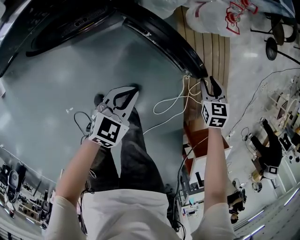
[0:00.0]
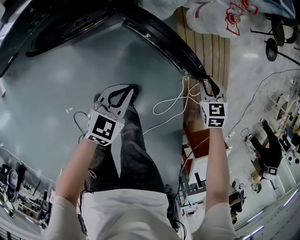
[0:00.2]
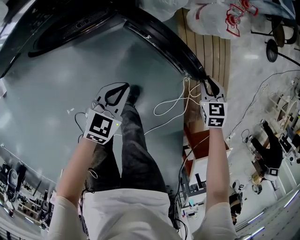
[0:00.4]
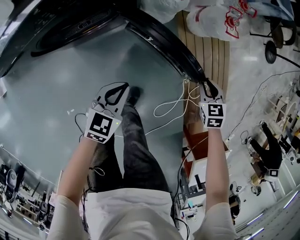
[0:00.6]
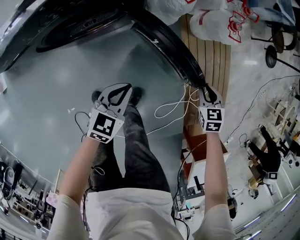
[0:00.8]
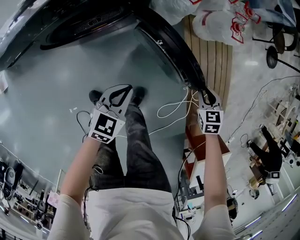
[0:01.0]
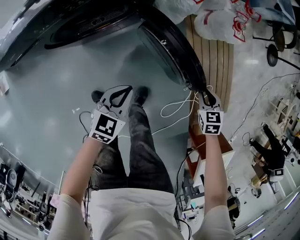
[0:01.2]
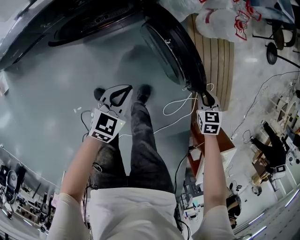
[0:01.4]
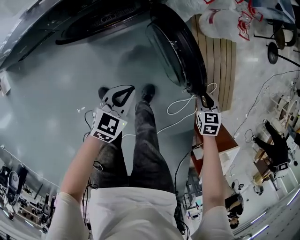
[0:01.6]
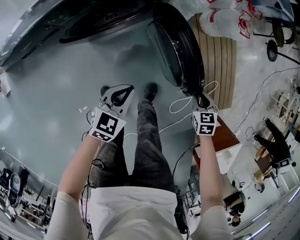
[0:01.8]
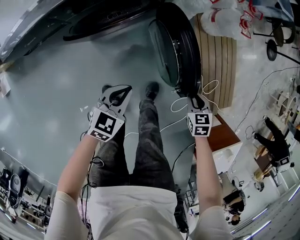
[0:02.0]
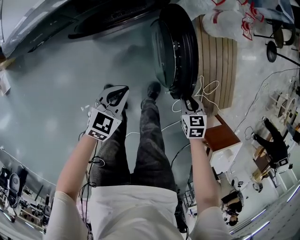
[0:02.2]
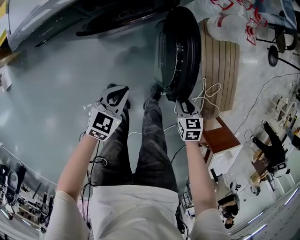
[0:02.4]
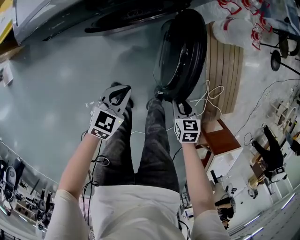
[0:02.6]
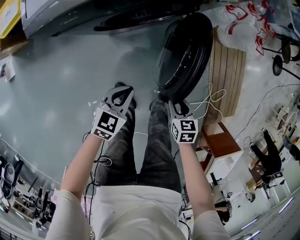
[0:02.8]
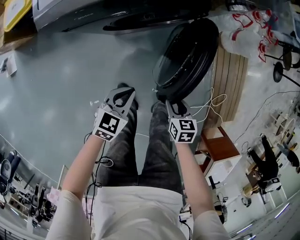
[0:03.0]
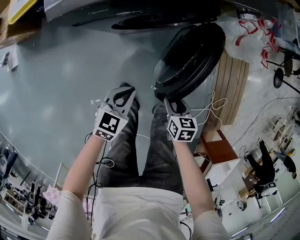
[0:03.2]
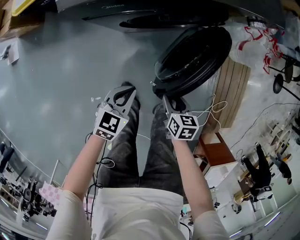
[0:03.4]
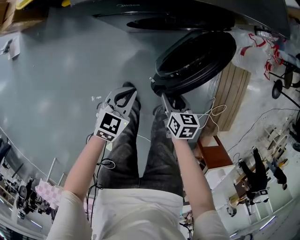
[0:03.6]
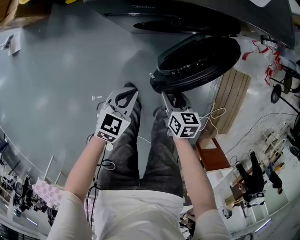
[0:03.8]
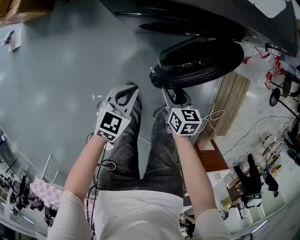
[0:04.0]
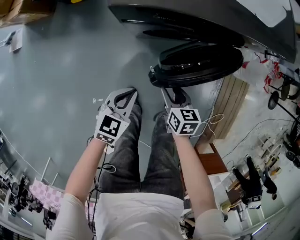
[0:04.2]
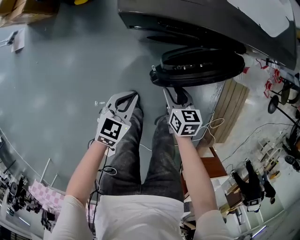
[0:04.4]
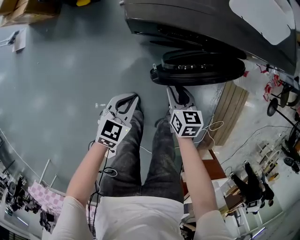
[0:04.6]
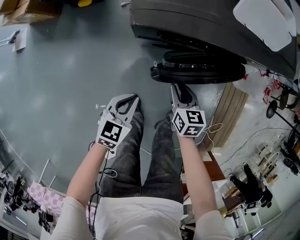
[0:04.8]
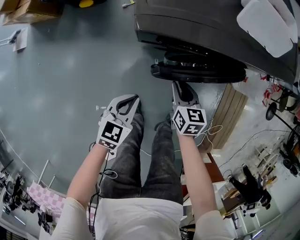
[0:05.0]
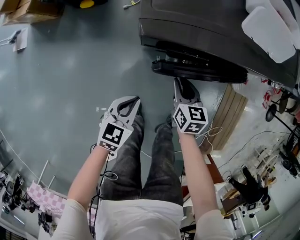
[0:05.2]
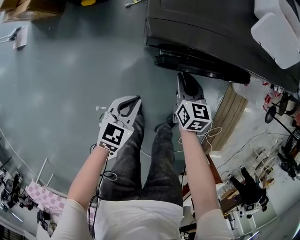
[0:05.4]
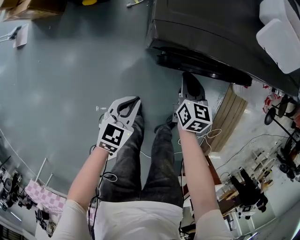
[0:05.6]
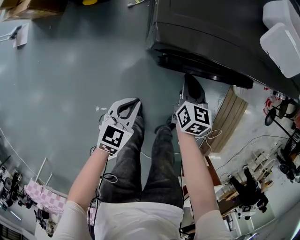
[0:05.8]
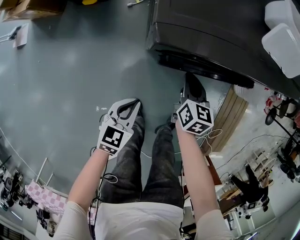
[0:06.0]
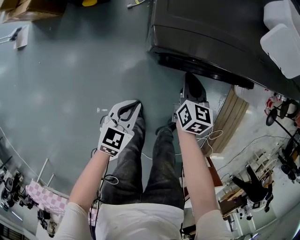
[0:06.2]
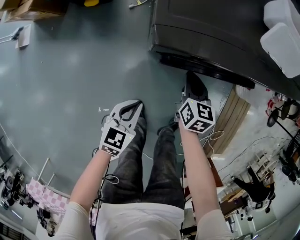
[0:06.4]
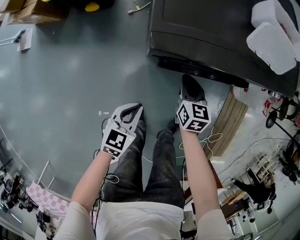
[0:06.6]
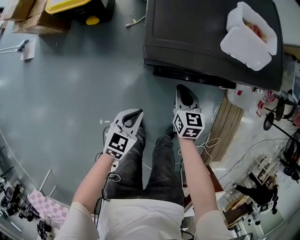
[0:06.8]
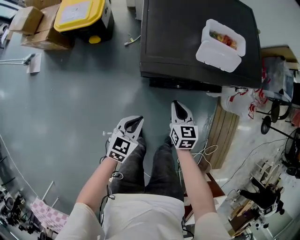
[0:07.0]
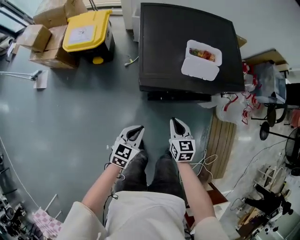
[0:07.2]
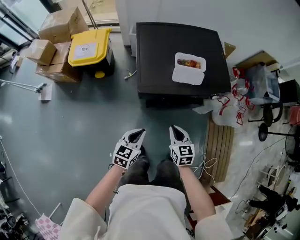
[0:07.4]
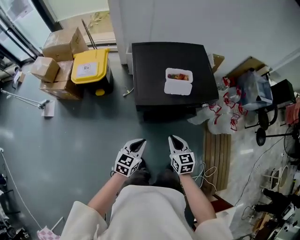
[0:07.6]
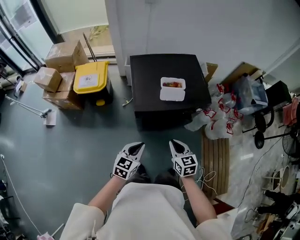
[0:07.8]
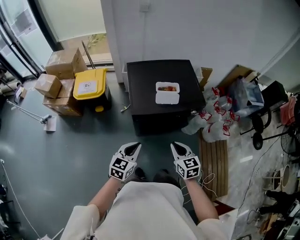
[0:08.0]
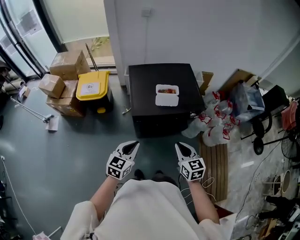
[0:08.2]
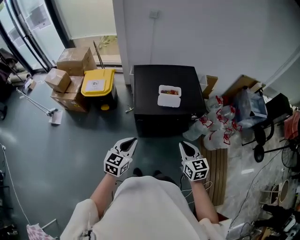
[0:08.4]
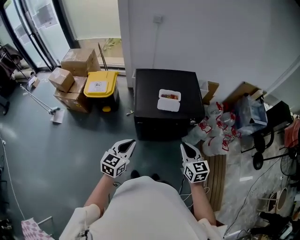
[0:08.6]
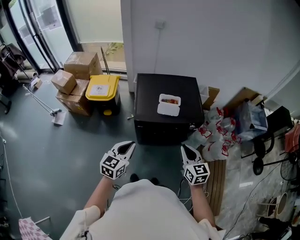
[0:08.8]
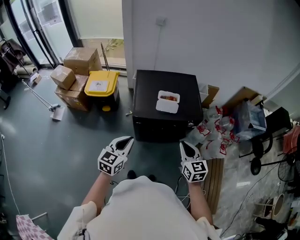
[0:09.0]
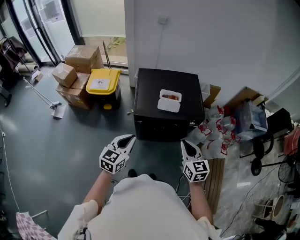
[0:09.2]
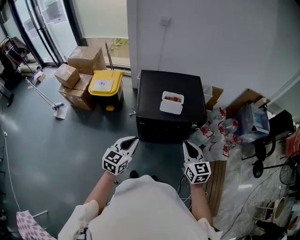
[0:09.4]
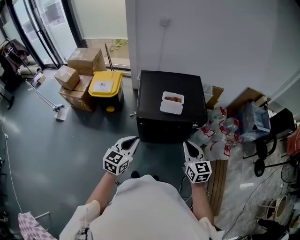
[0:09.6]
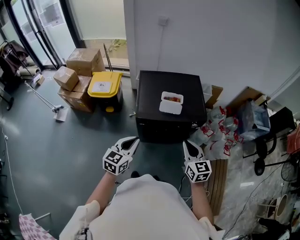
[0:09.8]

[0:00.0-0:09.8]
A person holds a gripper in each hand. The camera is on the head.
0:00.0 to 0:01.4: The left gripper moves to the left and backward, roughly 15 cm. Meanwhile the right gripper heads backward and to the left, covering roughly 15 cm.
0:01.4 to 0:02.8: The left gripper heads to the left and backward, covering some 20 cm. Meanwhile the right gripper shifts about 30 cm to the left and backward.
0:02.8 to 0:04.2: The left gripper travels to the left by roughly 15 cm. Meanwhile the right gripper travels to the left and forward by approximately 25 cm.
0:04.2 to 0:05.6: The left gripper is displaced to the left by some 5 cm. The right gripper heads forward, covering some 15 cm, and closes its fingers.
0:05.6 to 0:07.0: The grippers both shift upward by some 15 cm.
0:07.0 to 0:08.4: The grippers both shift upward by some 40 cm.
0:08.4 to 0:09.8: The right gripper travels upward by about 5 cm.

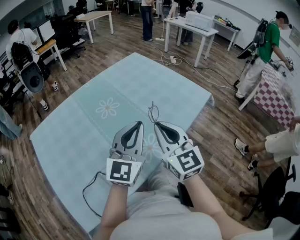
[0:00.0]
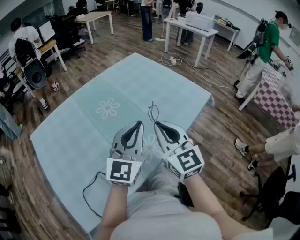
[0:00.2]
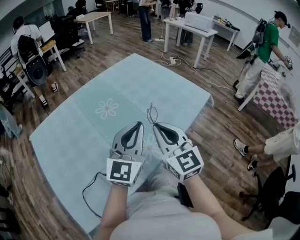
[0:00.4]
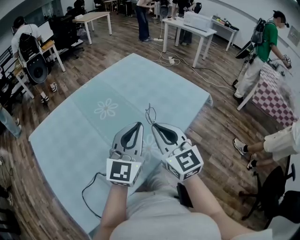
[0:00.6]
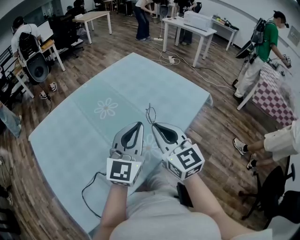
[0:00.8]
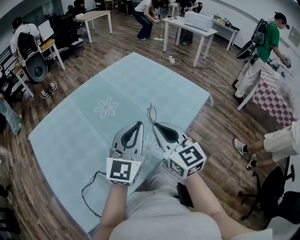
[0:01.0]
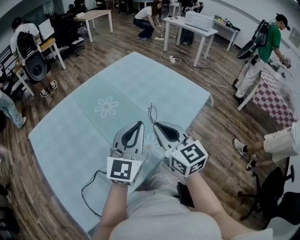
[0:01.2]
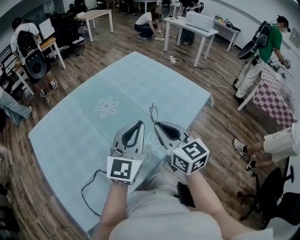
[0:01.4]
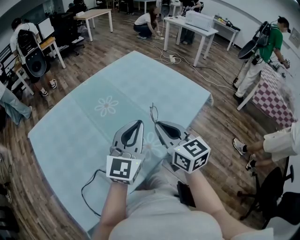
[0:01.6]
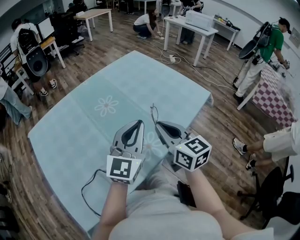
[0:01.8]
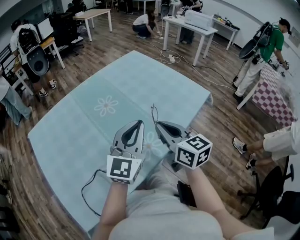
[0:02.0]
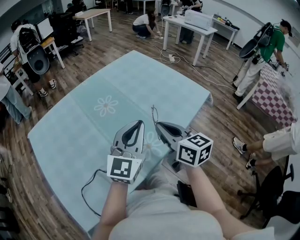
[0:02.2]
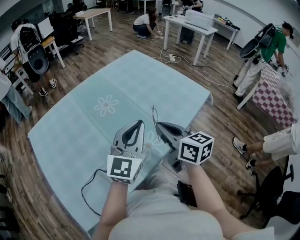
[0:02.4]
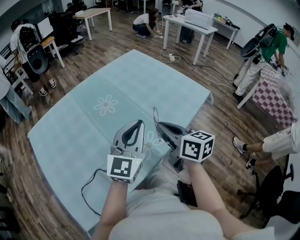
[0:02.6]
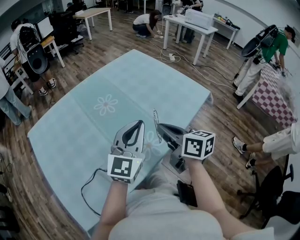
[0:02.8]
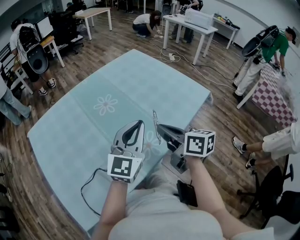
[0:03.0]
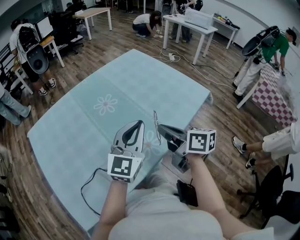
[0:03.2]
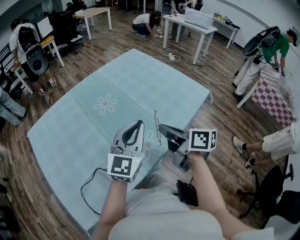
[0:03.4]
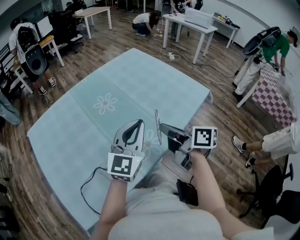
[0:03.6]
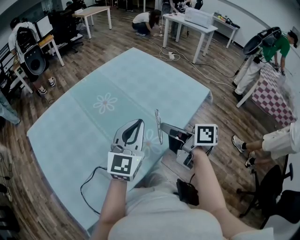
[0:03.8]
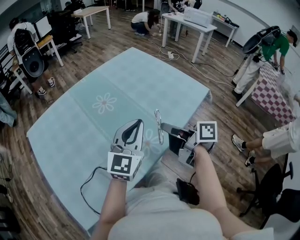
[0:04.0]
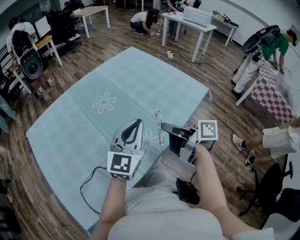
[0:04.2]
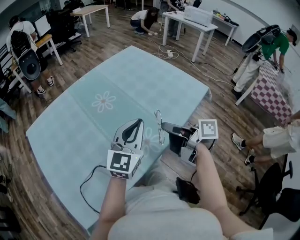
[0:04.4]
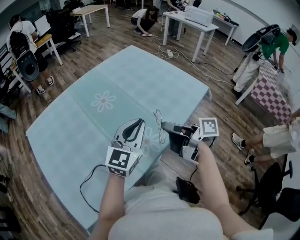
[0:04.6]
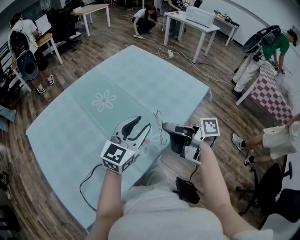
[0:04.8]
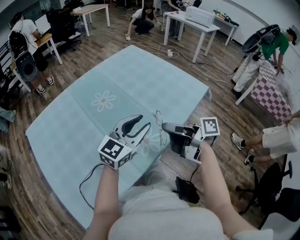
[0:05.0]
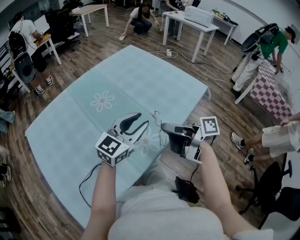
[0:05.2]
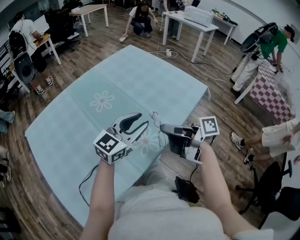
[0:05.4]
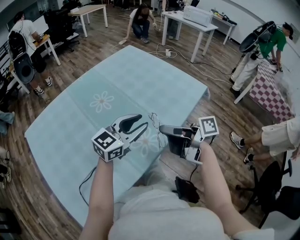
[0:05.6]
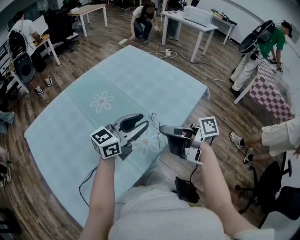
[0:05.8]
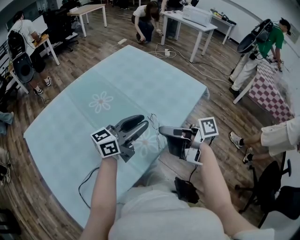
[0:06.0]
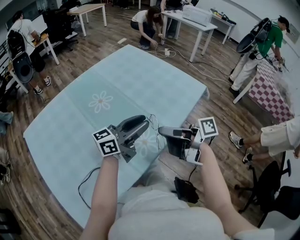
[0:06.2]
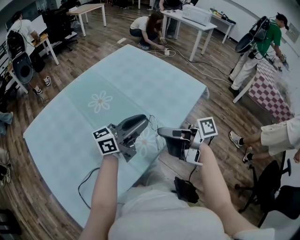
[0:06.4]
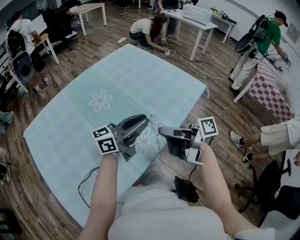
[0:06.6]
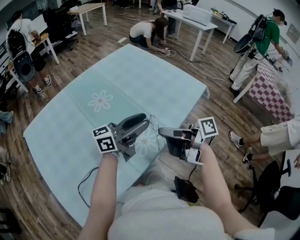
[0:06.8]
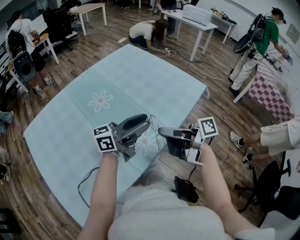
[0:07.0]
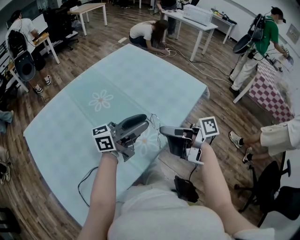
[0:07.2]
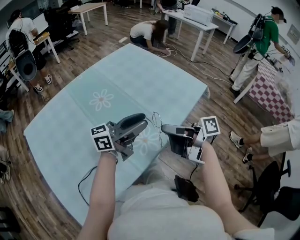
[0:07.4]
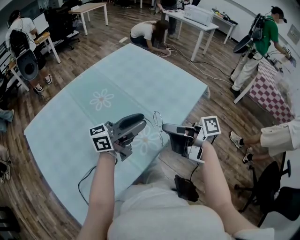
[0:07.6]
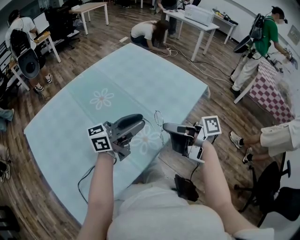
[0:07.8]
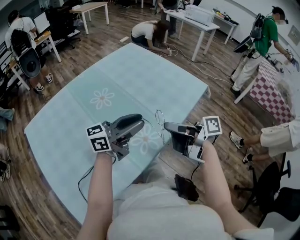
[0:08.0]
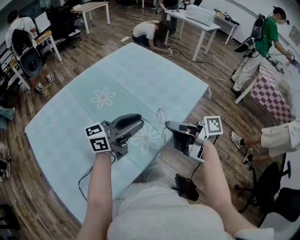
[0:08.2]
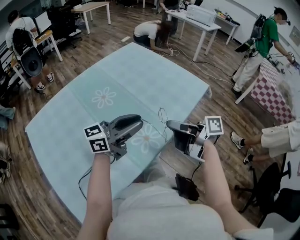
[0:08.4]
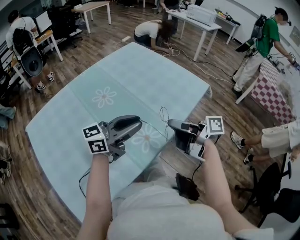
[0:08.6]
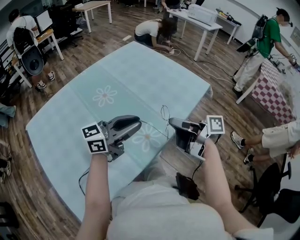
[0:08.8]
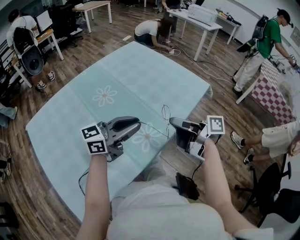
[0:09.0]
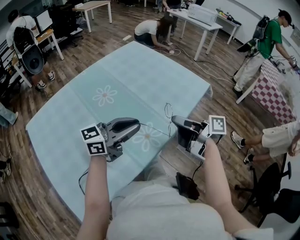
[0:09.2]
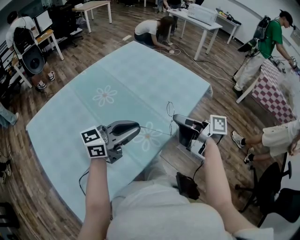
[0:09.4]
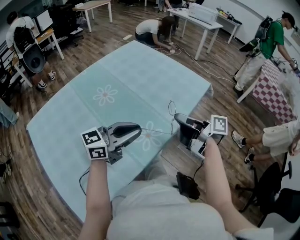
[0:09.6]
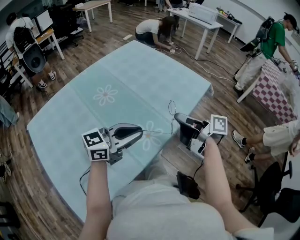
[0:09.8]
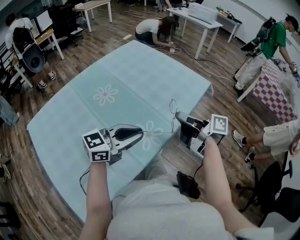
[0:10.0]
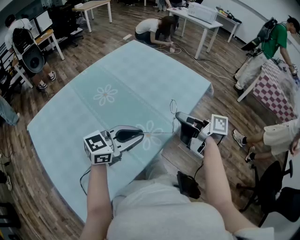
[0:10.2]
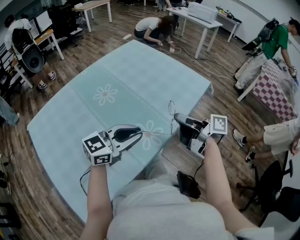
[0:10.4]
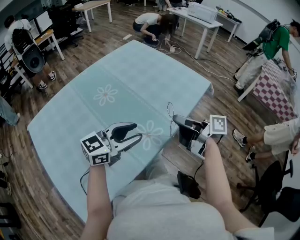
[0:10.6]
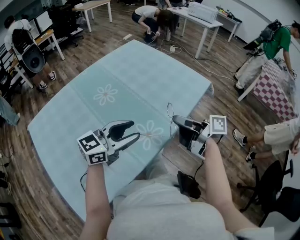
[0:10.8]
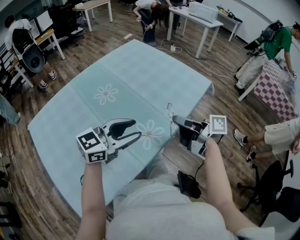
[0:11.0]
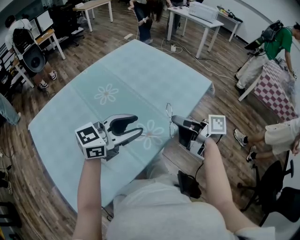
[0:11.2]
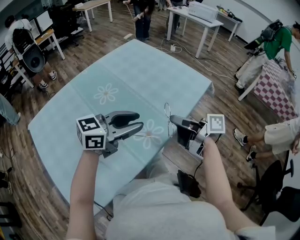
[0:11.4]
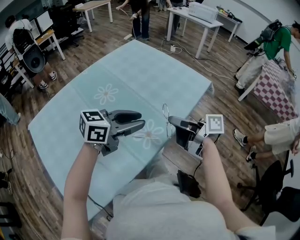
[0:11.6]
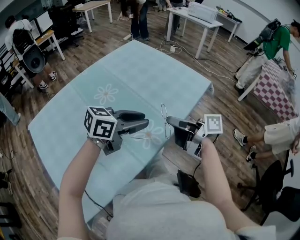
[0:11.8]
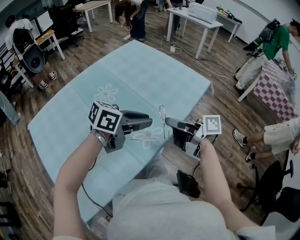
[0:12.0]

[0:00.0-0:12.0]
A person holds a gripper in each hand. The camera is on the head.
0:00.0 to 0:01.6: There are only small adjustments of the grippers.
0:01.6 to 0:03.0: The right gripper changes its angle by about 30 degrees.
0:03.0 to 0:04.4: The right gripper turns by some 30 degrees.
0:04.4 to 0:06.0: The left gripper rotates some 50 degrees, and opens.
0:06.0 to 0:07.6: There are only small adjustments of the grippers.
0:07.6 to 0:09.0: The left gripper closes up.
0:09.0 to 0:10.4: The grippers make only small movements.
0:10.4 to 0:12.0: The left gripper moves about 10 cm, and changes its angle by approximately 30 degrees.

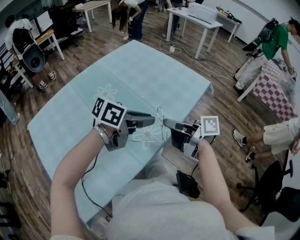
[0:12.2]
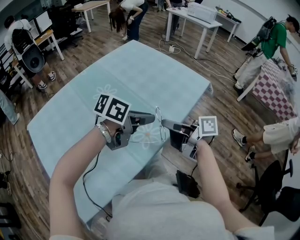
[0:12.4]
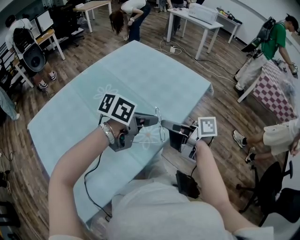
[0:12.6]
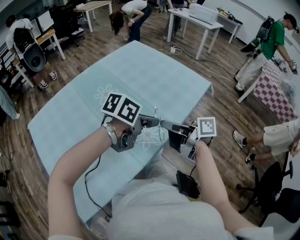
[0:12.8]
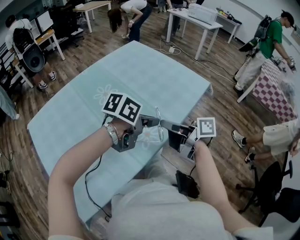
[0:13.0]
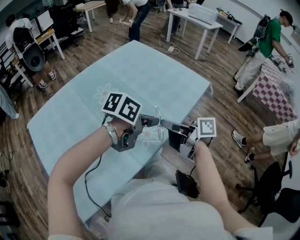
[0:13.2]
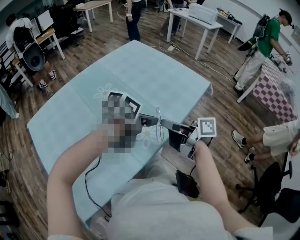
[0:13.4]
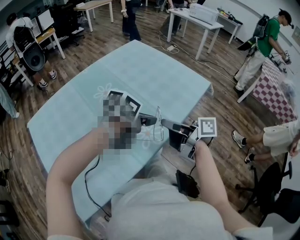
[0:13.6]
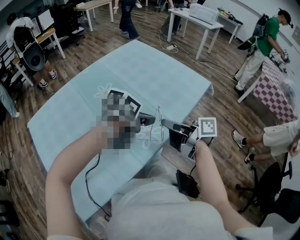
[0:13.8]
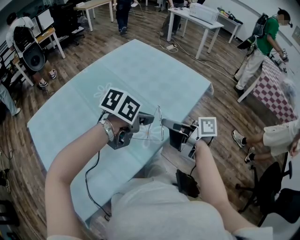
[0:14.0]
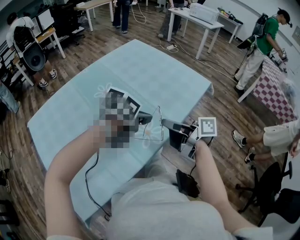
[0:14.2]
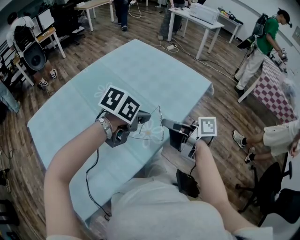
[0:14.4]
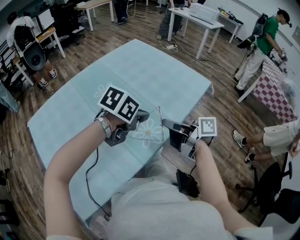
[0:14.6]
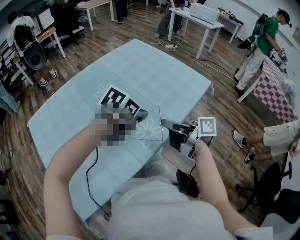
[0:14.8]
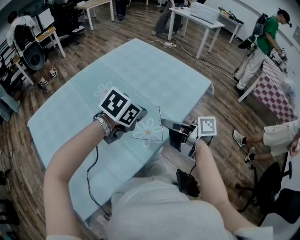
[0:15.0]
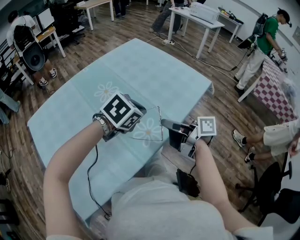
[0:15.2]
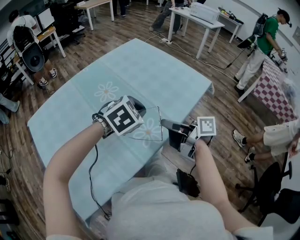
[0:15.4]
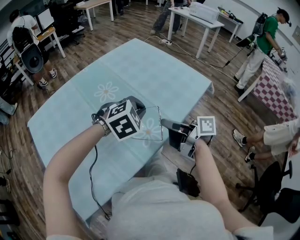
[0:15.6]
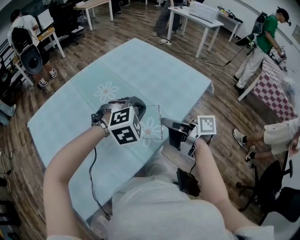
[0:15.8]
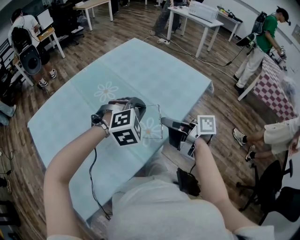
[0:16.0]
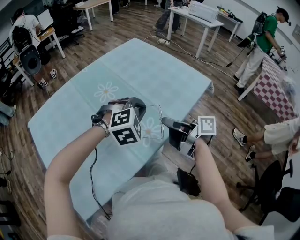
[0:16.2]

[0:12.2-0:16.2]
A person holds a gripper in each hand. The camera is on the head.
0:12.2 to 0:13.6: The grippers make only small movements.
0:13.6 to 0:14.8: The left gripper rotates roughly 20 degrees.
0:14.8 to 0:16.2: The left gripper twists about 60 degrees clockwise, seen from behind.
